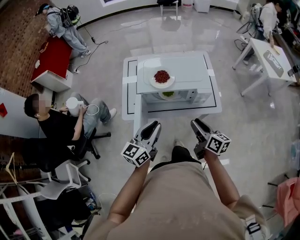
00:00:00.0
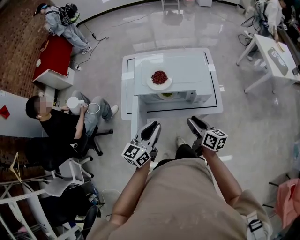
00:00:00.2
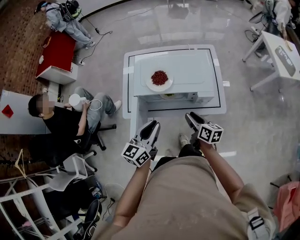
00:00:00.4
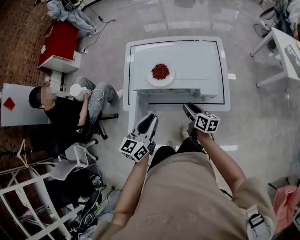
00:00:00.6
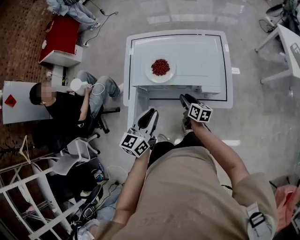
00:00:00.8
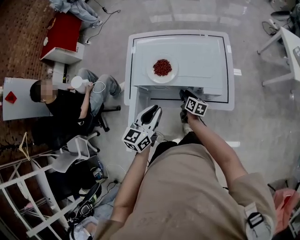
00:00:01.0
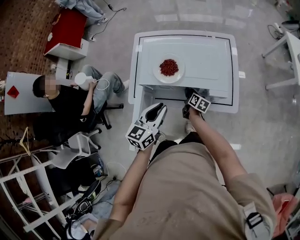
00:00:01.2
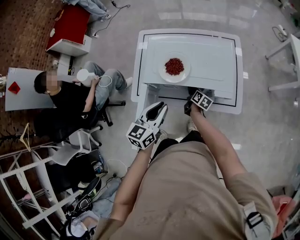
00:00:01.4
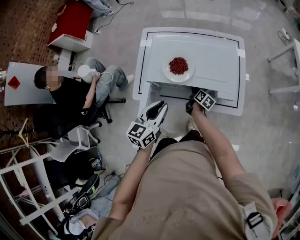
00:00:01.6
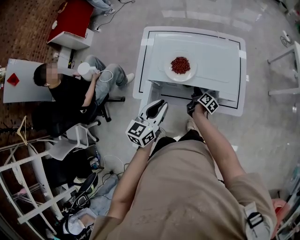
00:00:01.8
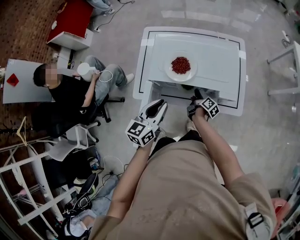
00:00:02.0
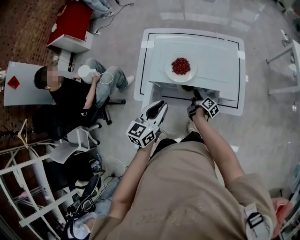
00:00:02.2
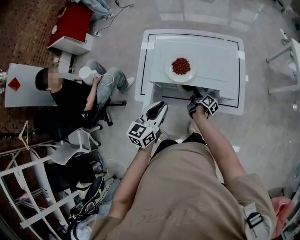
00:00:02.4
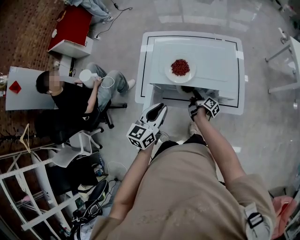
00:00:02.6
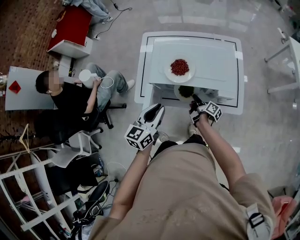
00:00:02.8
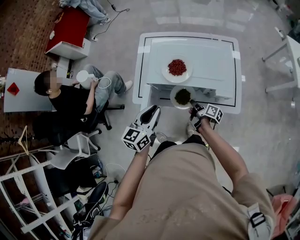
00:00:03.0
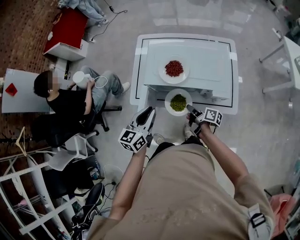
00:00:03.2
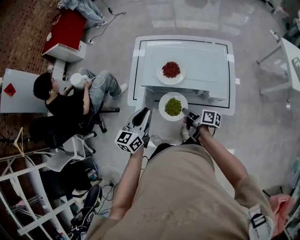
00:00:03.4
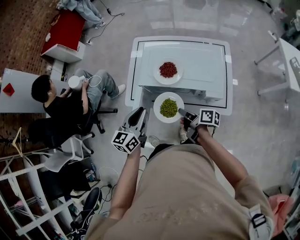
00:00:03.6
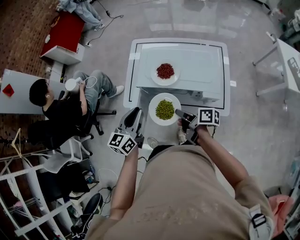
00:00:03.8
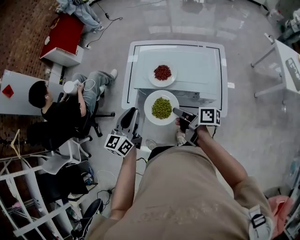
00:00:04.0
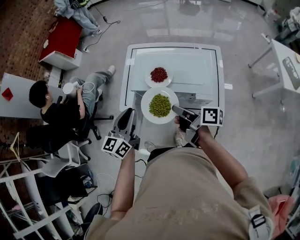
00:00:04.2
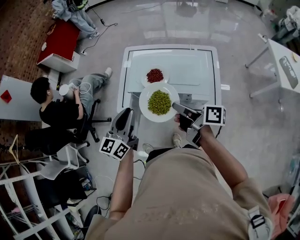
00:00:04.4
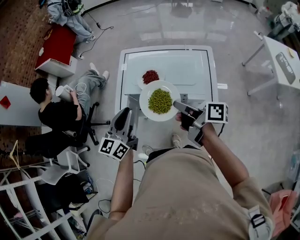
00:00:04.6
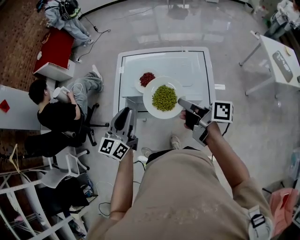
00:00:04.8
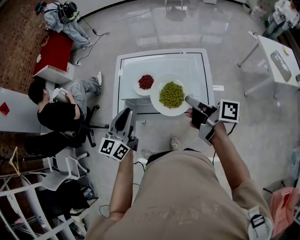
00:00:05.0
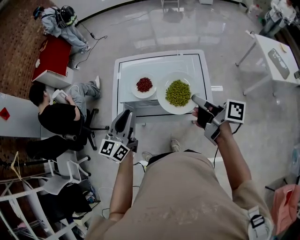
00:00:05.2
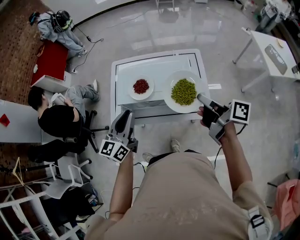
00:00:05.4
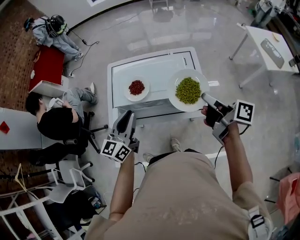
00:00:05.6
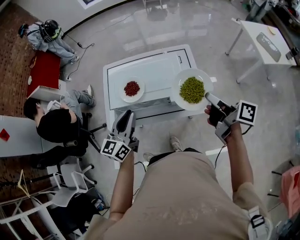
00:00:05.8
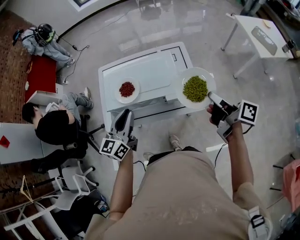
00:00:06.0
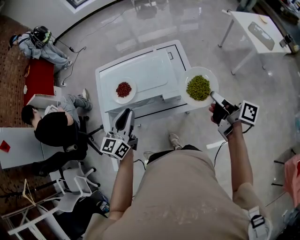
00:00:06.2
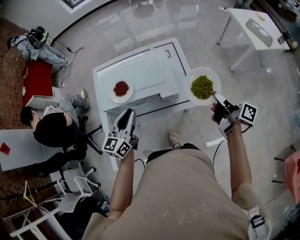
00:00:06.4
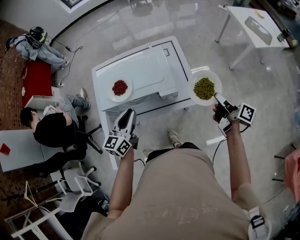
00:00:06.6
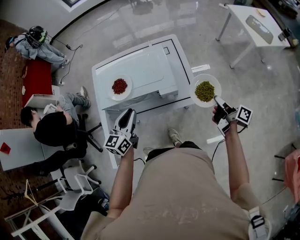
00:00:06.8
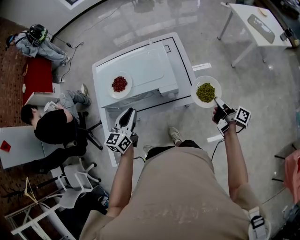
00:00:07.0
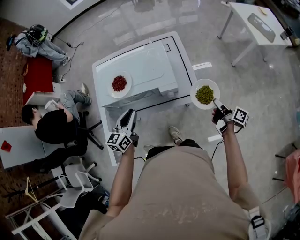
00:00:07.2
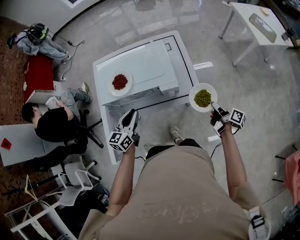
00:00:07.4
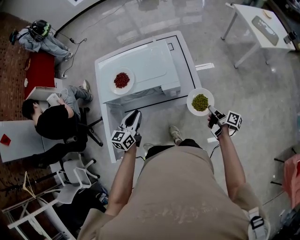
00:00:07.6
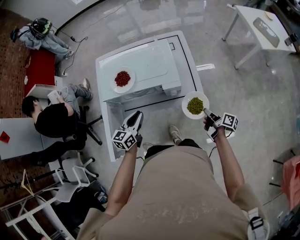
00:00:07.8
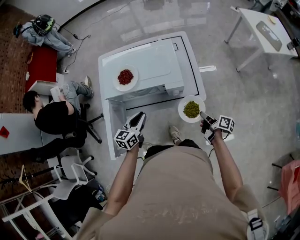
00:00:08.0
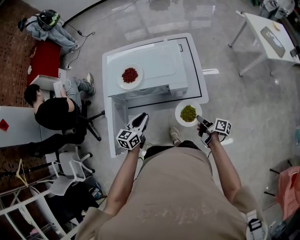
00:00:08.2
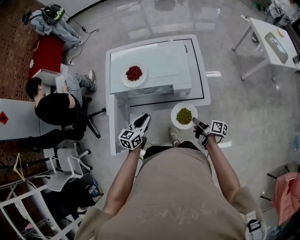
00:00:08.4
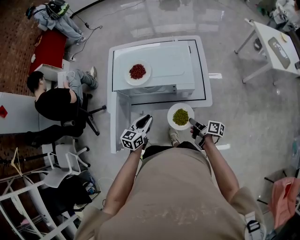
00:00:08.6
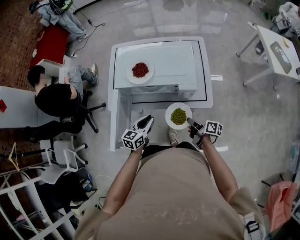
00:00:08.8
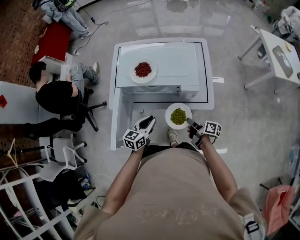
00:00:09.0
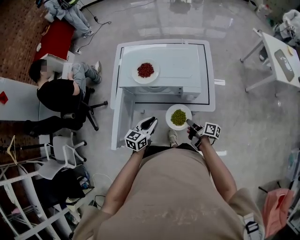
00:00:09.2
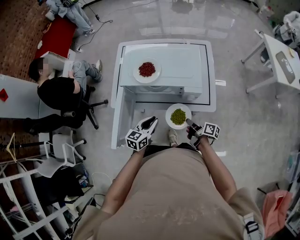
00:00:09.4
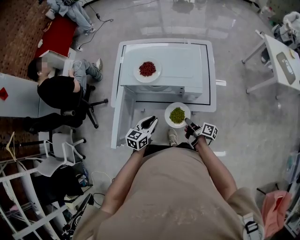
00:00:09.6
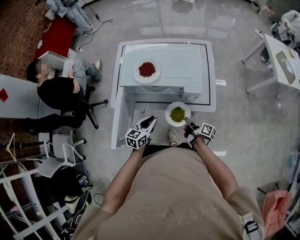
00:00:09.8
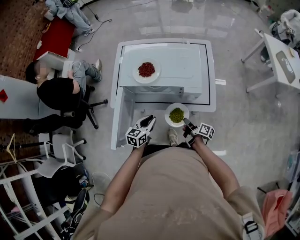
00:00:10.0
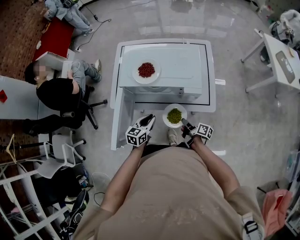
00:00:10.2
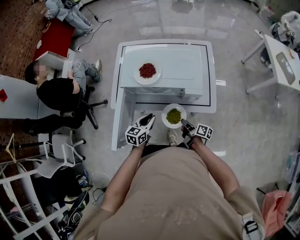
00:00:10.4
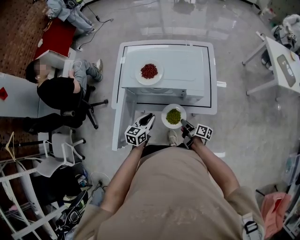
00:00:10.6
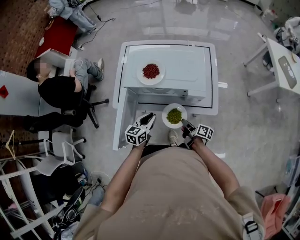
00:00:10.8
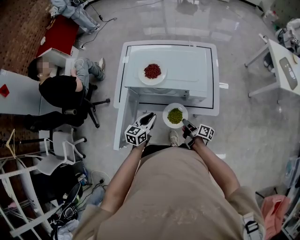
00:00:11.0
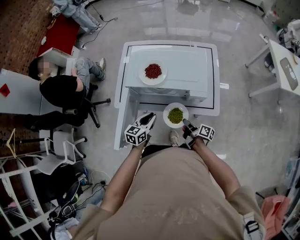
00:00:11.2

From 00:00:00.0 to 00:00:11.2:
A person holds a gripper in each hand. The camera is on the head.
From 00:00:00.0 to 00:00:01.6: The right gripper goes some 40 cm downward and forward, and turns by roughly 30 degrees, while the left gripper moves forward and downward, approximately 15 cm.
From 00:00:01.6 to 00:00:03.2: The left gripper ends up some 5 cm from where it was, while the right gripper is displaced backward and upward by about 15 cm, and swivels approximately 30 degrees.
From 00:00:03.2 to 00:00:04.8: The right gripper heads upward, covering about 30 cm. Meanwhile the left gripper goes about 15 cm upward.
From 00:00:04.8 to 00:00:06.4: The left gripper heads to the right and downward, covering some 10 cm. Meanwhile the right gripper heads to the right, covering about 25 cm, and swivels some 30 degrees.
From 00:00:06.4 to 00:00:08.0: The left gripper is displaced downward by some 15 cm. The right gripper shifts some 25 cm downward.
From 00:00:08.0 to 00:00:09.6: The right gripper shifts roughly 15 cm to the left. The left gripper ends up some 5 cm from where it was.
From 00:00:09.6 to 00:00:11.2: There are only small adjustments of the grippers.

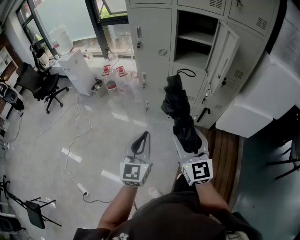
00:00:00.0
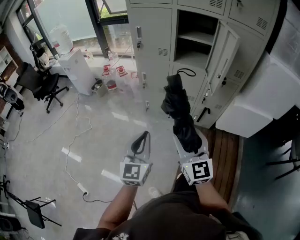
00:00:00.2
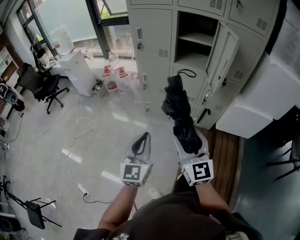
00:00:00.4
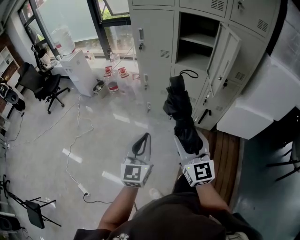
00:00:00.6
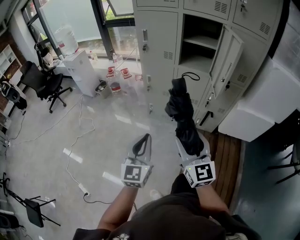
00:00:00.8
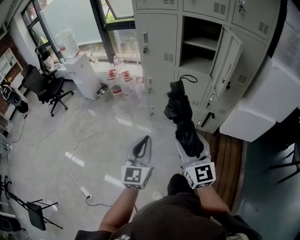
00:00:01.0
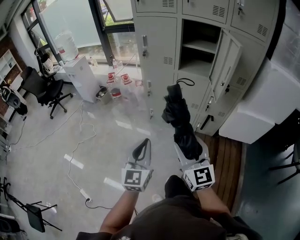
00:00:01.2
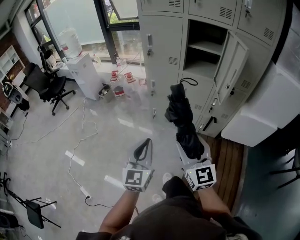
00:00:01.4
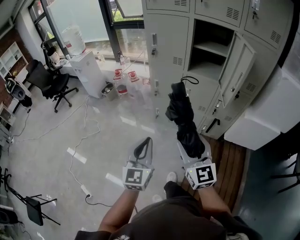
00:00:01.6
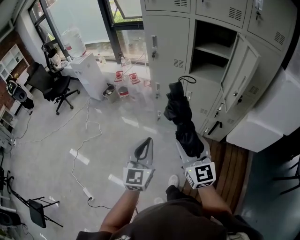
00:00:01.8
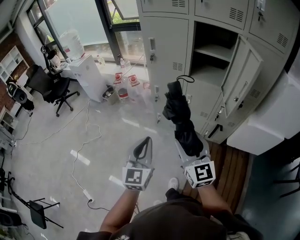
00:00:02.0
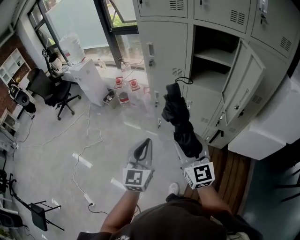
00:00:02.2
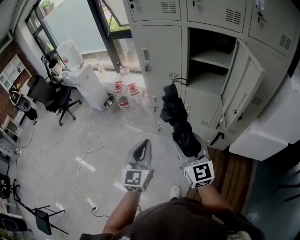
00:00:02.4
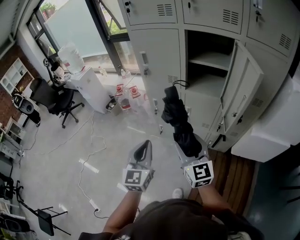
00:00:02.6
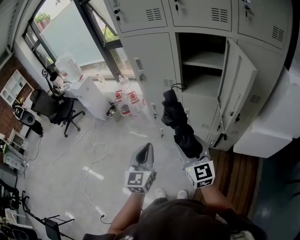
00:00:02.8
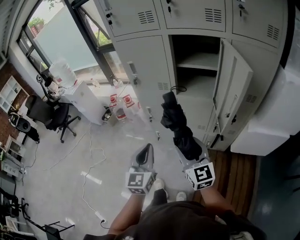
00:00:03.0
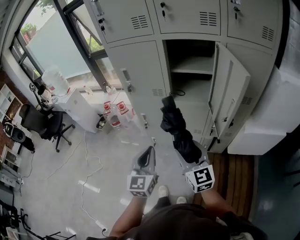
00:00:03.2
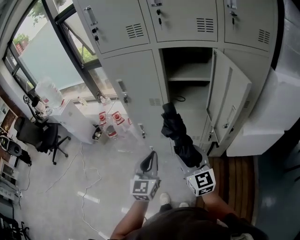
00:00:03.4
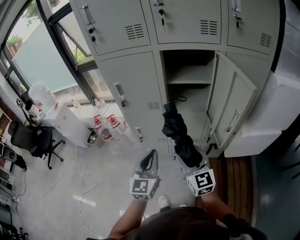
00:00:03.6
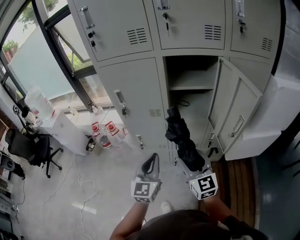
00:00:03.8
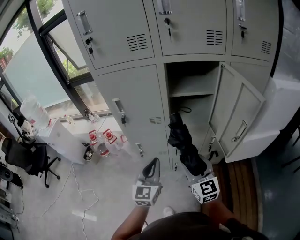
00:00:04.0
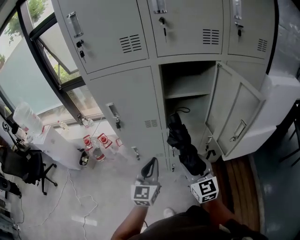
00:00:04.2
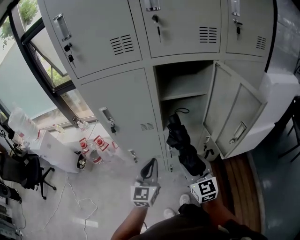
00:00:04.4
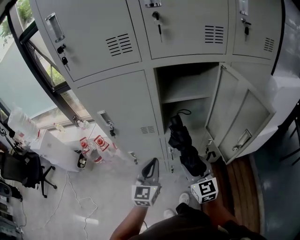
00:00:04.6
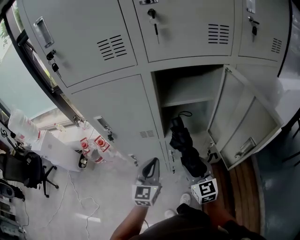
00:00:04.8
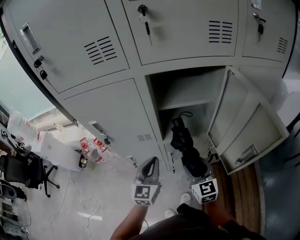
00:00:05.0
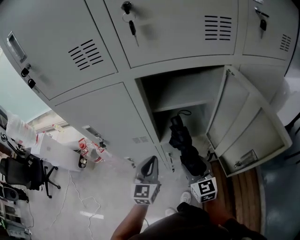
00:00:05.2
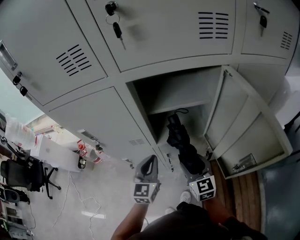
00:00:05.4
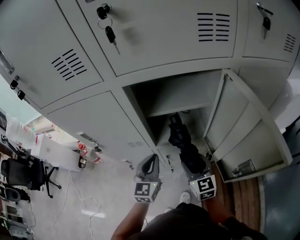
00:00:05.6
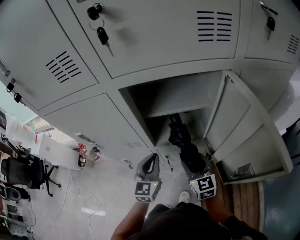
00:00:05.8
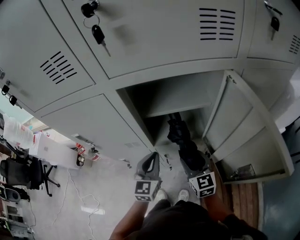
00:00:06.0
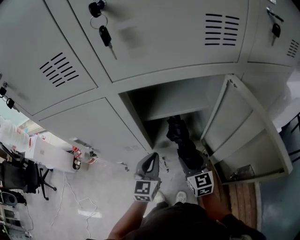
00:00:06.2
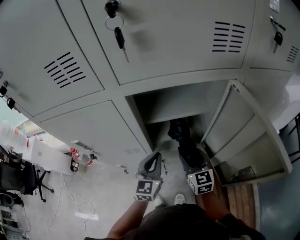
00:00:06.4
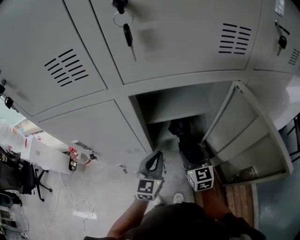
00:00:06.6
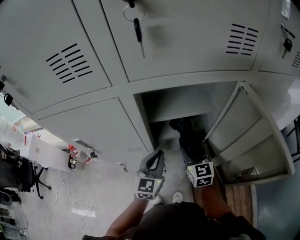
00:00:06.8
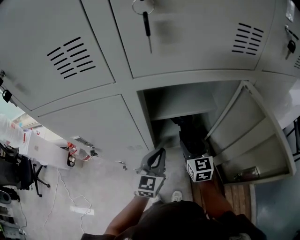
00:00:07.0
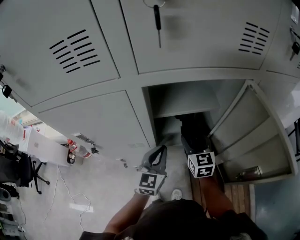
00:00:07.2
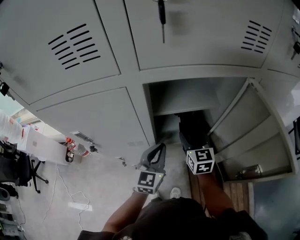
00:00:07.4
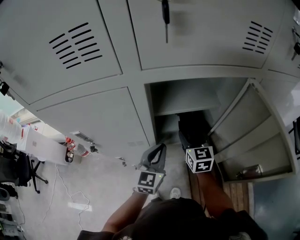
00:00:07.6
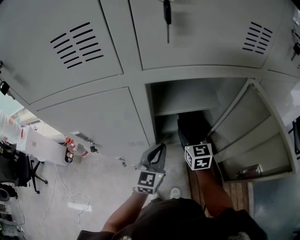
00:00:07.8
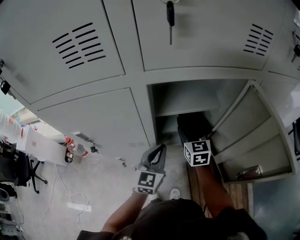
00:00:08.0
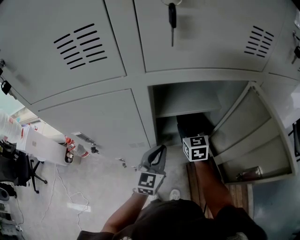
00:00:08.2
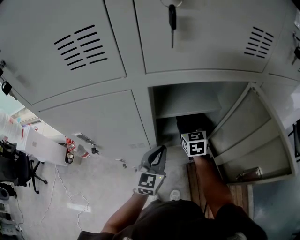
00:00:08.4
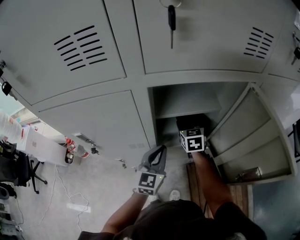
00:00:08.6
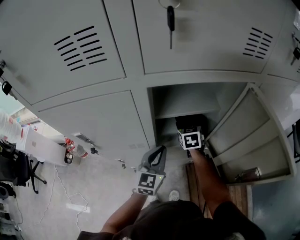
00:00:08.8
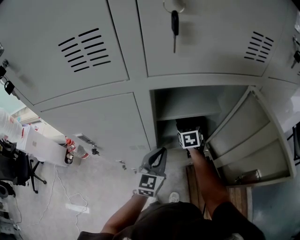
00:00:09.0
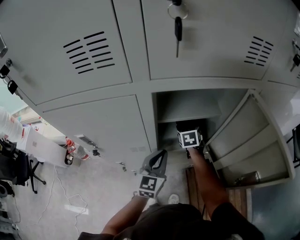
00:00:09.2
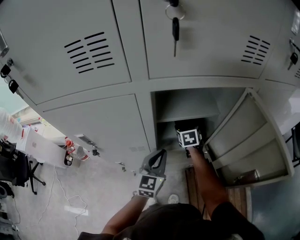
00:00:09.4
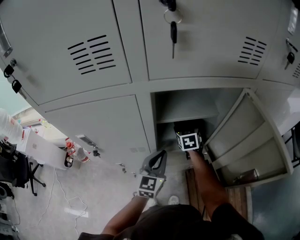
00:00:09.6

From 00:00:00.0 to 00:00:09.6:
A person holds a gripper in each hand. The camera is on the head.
From 00:00:00.0 to 00:00:01.6: The right gripper ends up approximately 5 cm from where it was.
From 00:00:01.6 to 00:00:03.2: Both grippers travel together forward and to the right, some 25 cm.
From 00:00:03.2 to 00:00:04.8: Both grippers travel together forward, roughly 20 cm. The right gripper turns by roughly 20 degrees.
From 00:00:04.8 to 00:00:06.4: The left gripper is displaced forward and to the right by roughly 15 cm. The right gripper shifts approximately 15 cm forward.
From 00:00:06.4 to 00:00:08.0: The right gripper goes about 10 cm forward.
From 00:00:08.0 to 00:00:09.6: The right gripper travels forward and downward by roughly 10 cm.

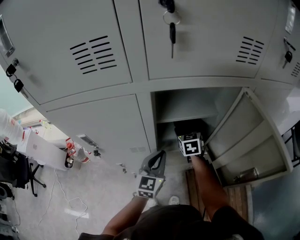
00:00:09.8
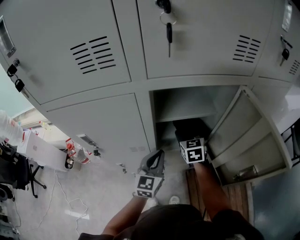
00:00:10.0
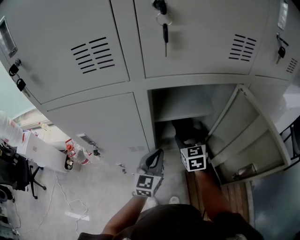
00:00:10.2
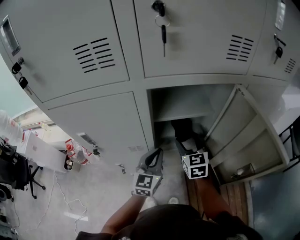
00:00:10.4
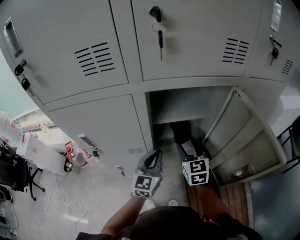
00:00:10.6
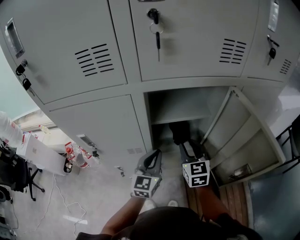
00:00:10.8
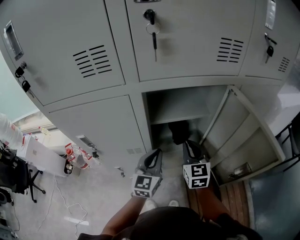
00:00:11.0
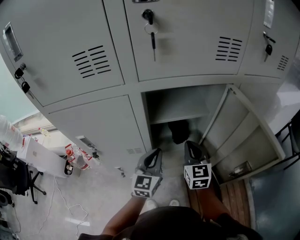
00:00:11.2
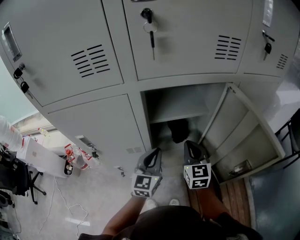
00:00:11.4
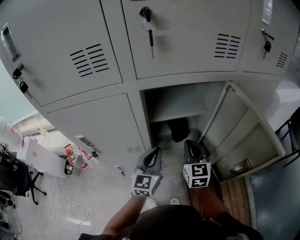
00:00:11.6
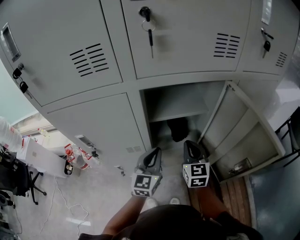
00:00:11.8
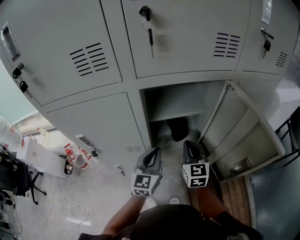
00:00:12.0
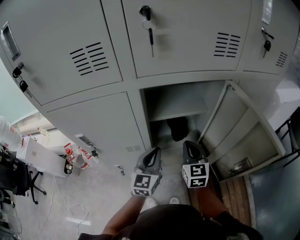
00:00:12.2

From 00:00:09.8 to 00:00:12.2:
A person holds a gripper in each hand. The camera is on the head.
From 00:00:09.8 to 00:00:11.0: The right gripper shifts about 15 cm backward and upward, and closes.
From 00:00:11.0 to 00:00:12.2: The grippers make only small movements.
